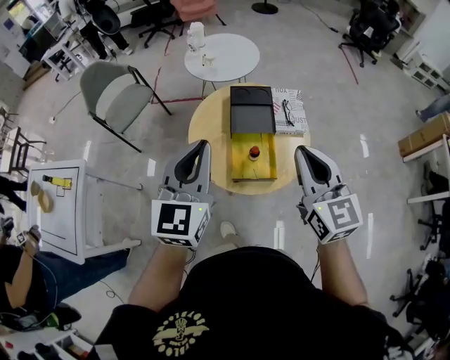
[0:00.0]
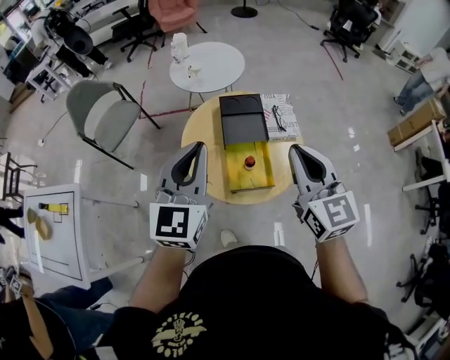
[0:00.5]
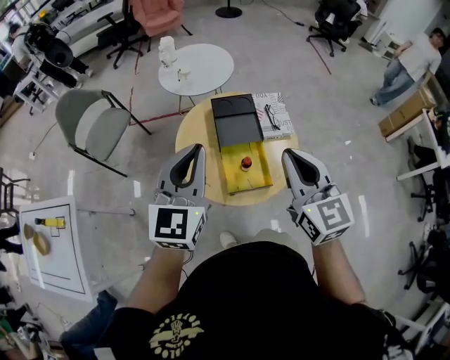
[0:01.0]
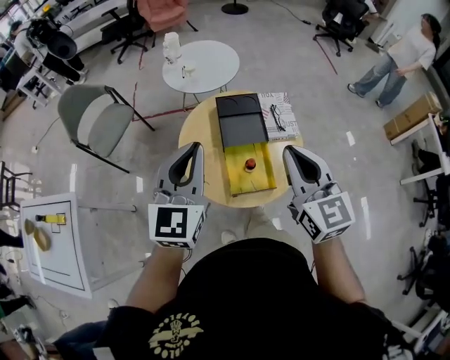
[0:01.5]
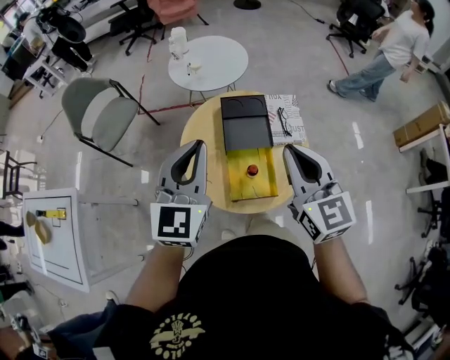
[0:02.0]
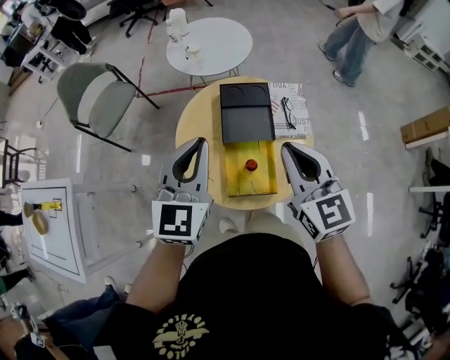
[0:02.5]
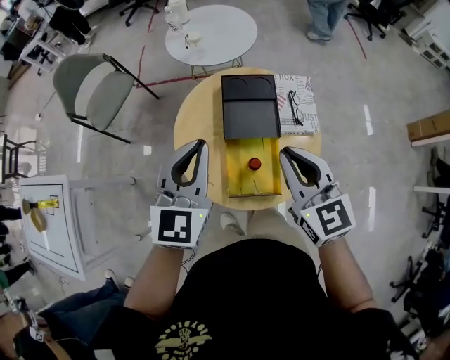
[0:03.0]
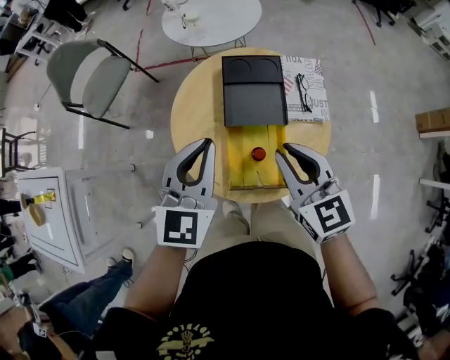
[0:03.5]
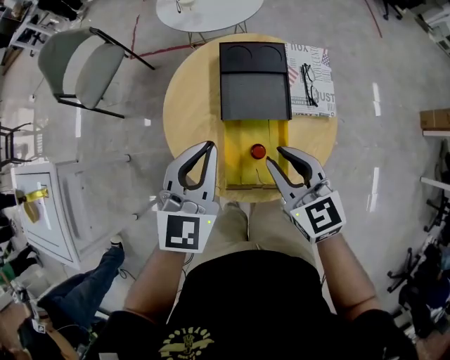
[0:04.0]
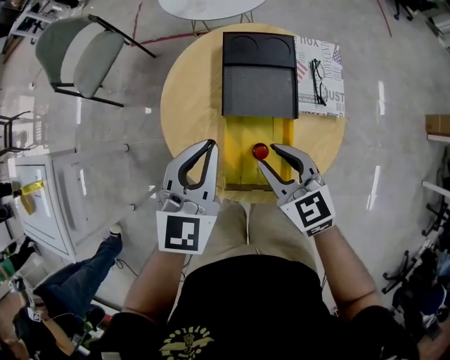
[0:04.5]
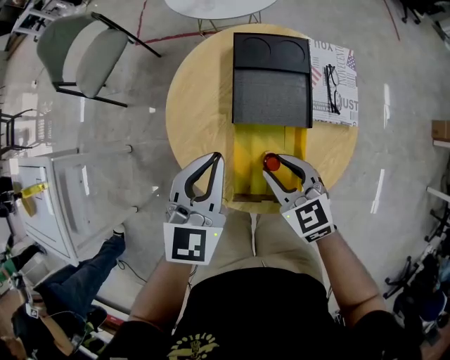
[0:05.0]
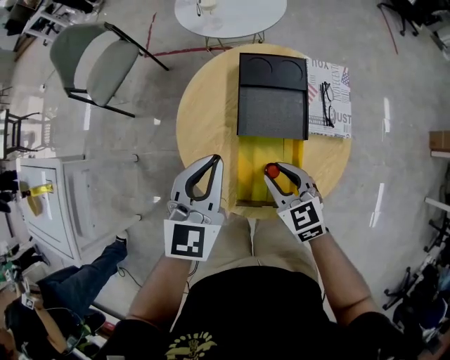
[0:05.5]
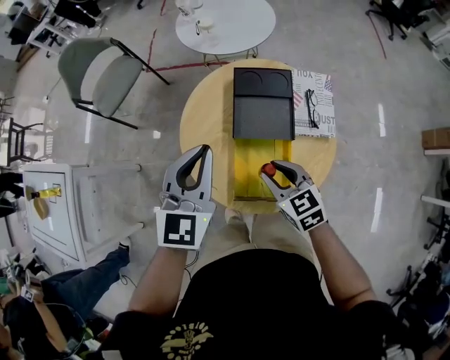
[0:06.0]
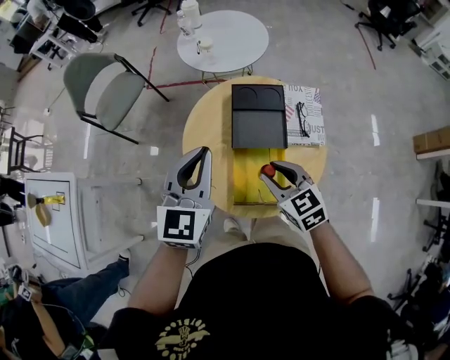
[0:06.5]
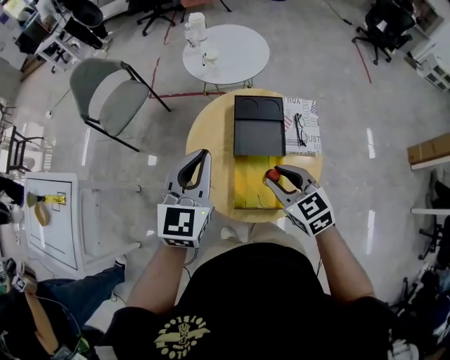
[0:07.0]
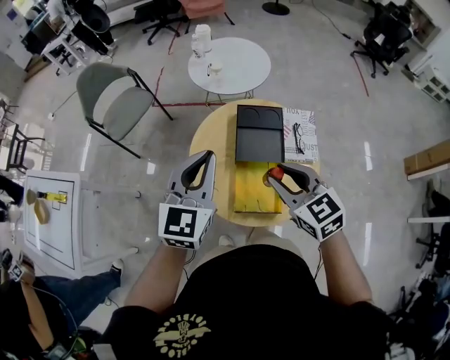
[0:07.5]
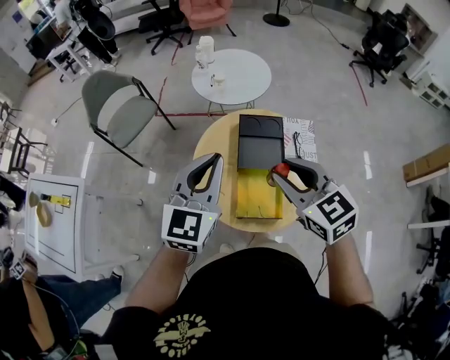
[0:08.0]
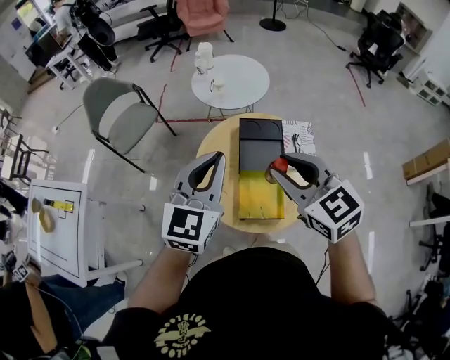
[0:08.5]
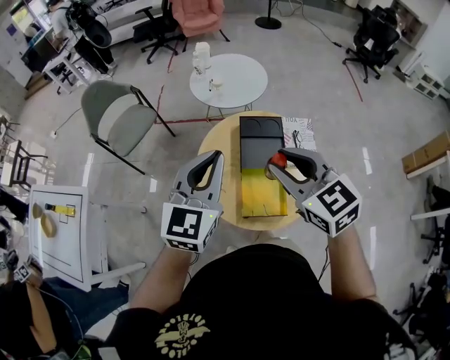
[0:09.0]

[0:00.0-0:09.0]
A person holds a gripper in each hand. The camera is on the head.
0:00.0 to 0:02.0: Both grippers move forward, some 10 cm.
0:02.0 to 0:04.5: The grippers both shift downward by roughly 25 cm. The right gripper turns by roughly 30 degrees, and opens its fingers.
0:04.5 to 0:07.0: Both grippers move upward, approximately 15 cm.
0:07.0 to 0:09.0: The left gripper heads upward, covering about 10 cm. Meanwhile the right gripper goes roughly 20 cm upward.

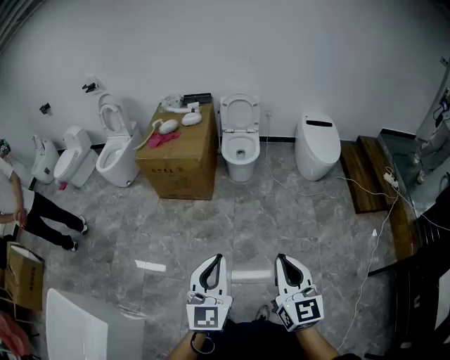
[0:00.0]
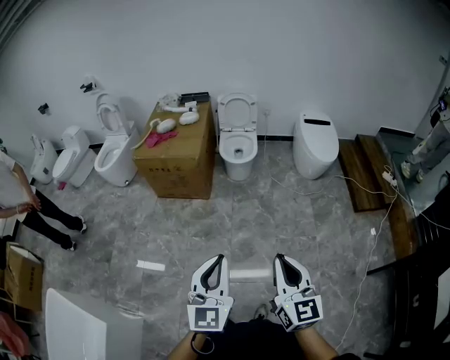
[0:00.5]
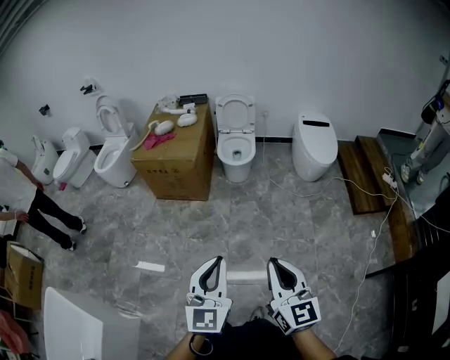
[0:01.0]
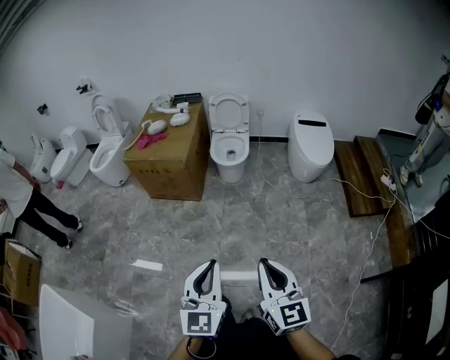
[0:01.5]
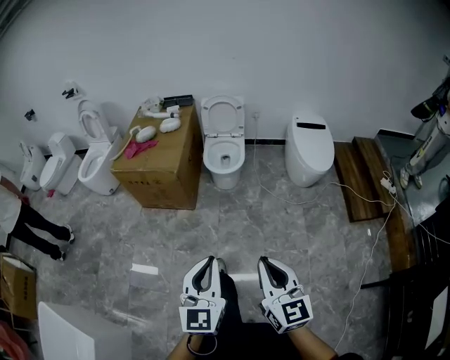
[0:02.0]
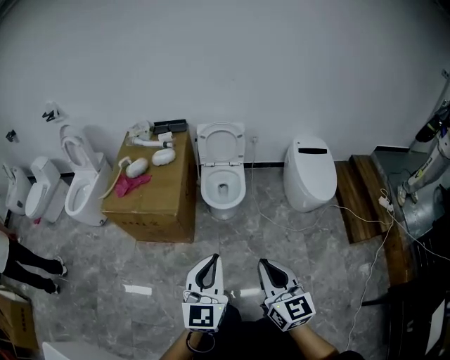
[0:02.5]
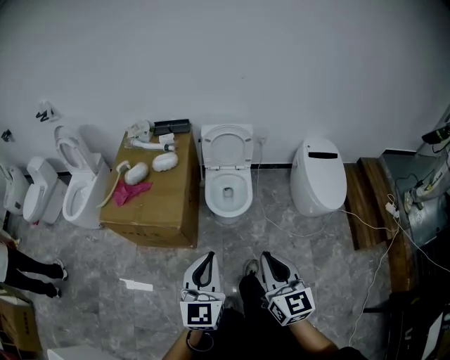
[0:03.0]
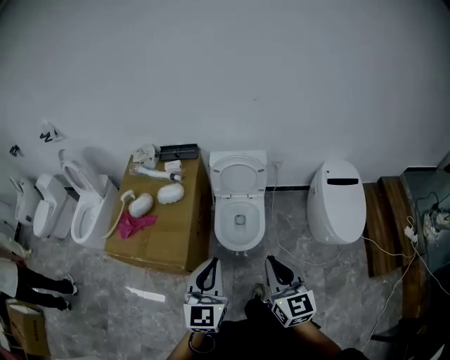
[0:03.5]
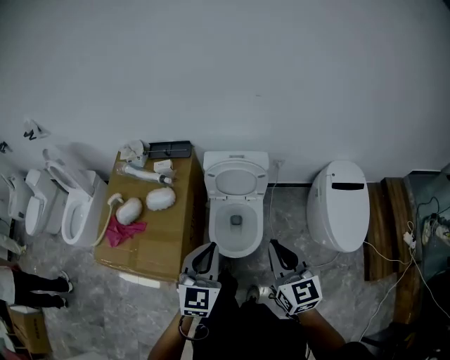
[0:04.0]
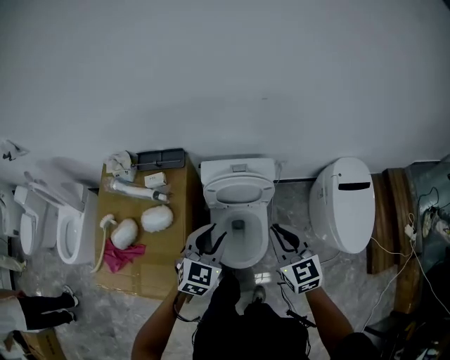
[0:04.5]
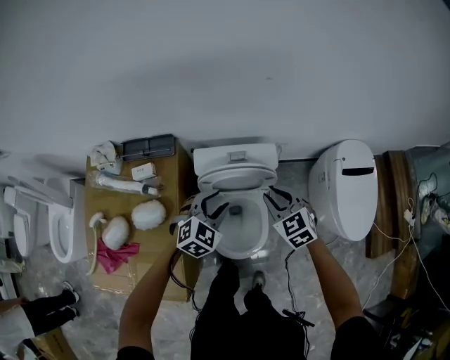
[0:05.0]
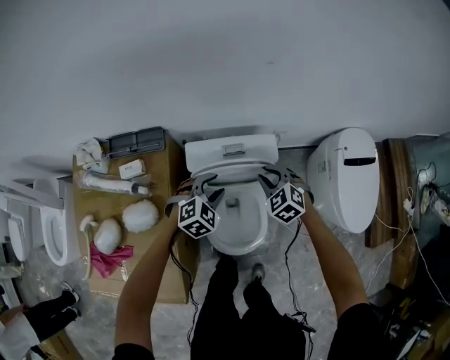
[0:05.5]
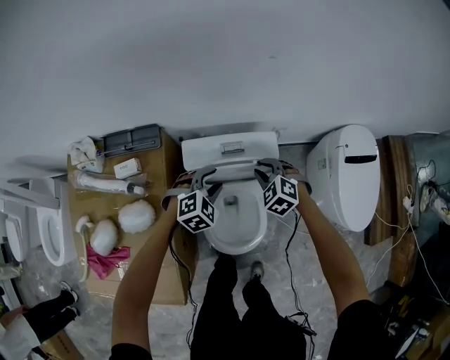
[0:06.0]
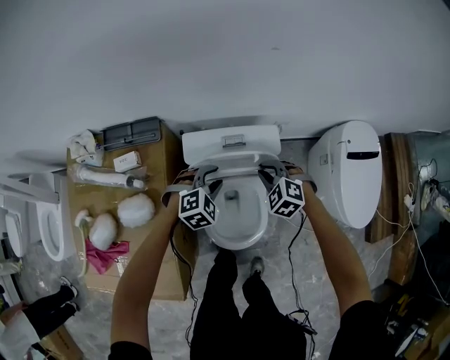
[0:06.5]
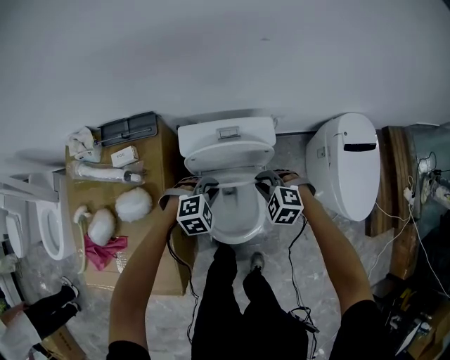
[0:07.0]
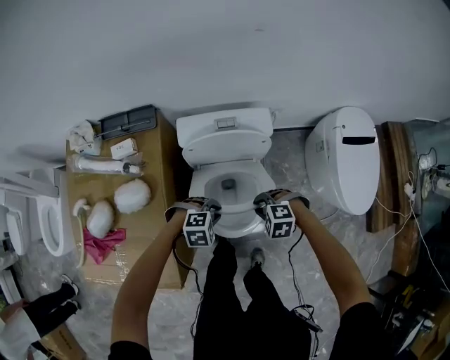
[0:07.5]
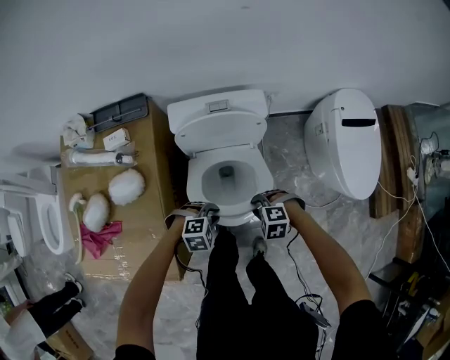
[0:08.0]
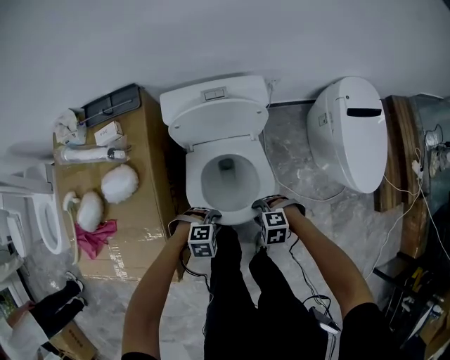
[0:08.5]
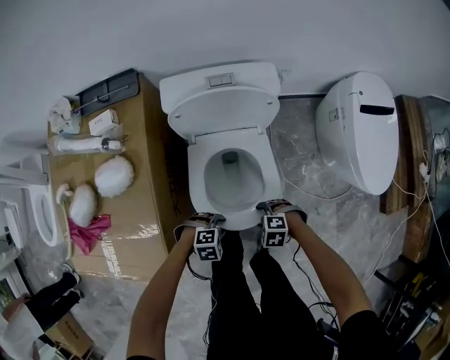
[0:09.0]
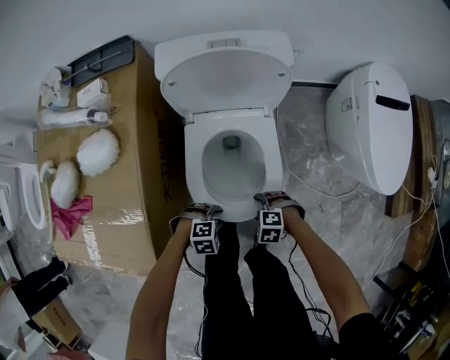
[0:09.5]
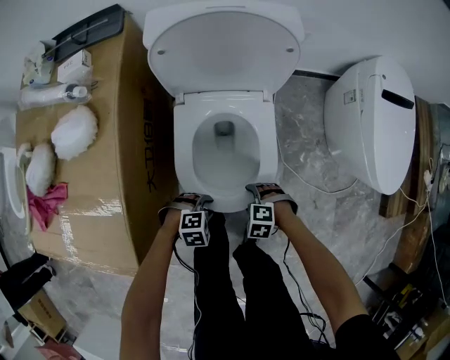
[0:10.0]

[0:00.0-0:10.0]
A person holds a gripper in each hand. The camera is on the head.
0:00.0 to 0:02.0: The two grippers go roughly 20 cm forward and to the right.
0:02.0 to 0:04.0: The pair of grippers is taken forward, approximately 80 cm.
0:04.0 to 0:06.0: The grippers both shift forward and downward by approximately 50 cm. The right gripper tilts its fingers roughly 50 degrees downward, while the left gripper angles its fingers downward, by roughly 40 degrees, and opens.
0:06.0 to 0:08.0: The left gripper shifts by approximately 30 cm, swivels approximately 30 degrees, and closes up; the right gripper ends up roughly 30 cm from where it was, and turns by about 30 degrees.
0:08.0 to 0:10.0: Both grippers travel together downward, about 25 cm. The right gripper opens.

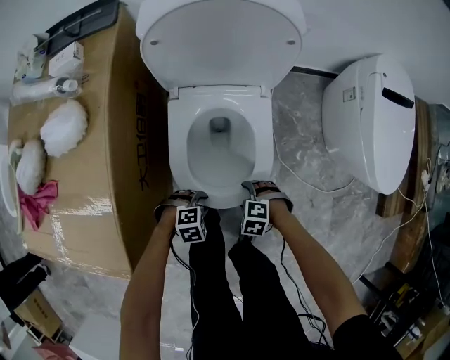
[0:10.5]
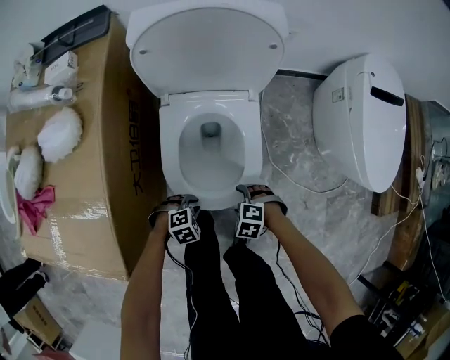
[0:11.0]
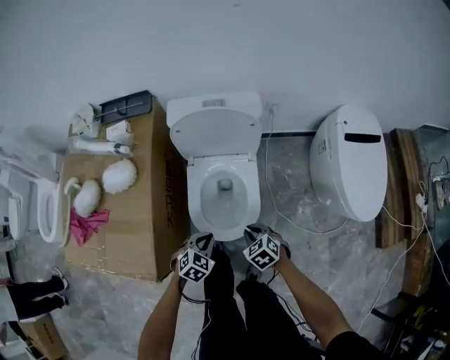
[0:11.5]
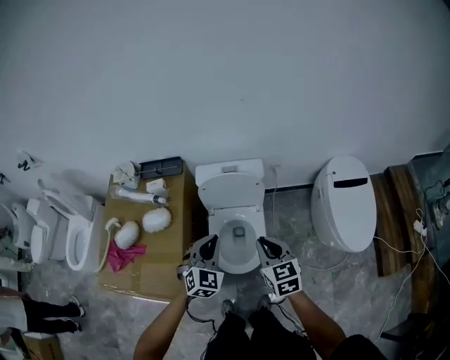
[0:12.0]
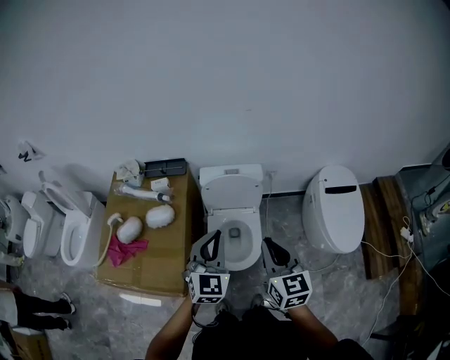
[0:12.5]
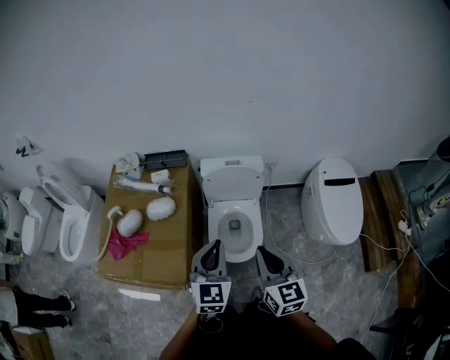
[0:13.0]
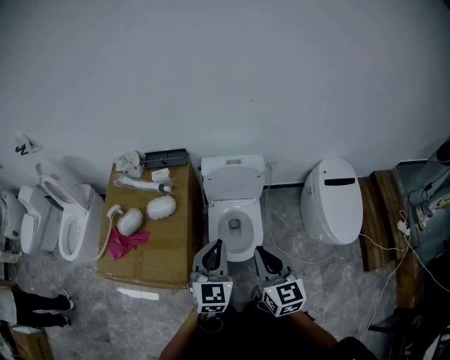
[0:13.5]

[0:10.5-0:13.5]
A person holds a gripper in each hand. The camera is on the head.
0:10.5 to 0:12.0: Both grippers move upward, roughly 60 cm. The right gripper tilts its fingers roughly 50 degrees upward, and closes its fingers; the left gripper tilts its fingers some 50 degrees upward, and closes.
0:12.0 to 0:13.5: The right gripper is displaced upward, backward and to the left by about 20 cm; the left gripper goes roughly 15 cm upward and backward, and rotates approximately 30 degrees.

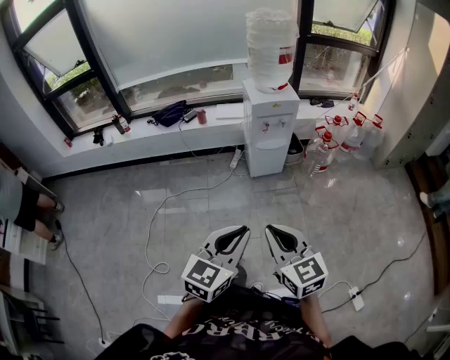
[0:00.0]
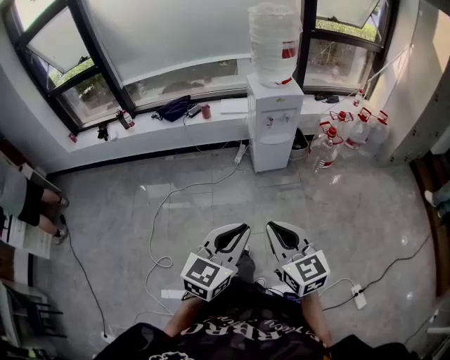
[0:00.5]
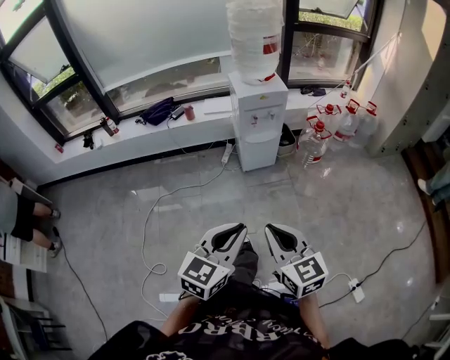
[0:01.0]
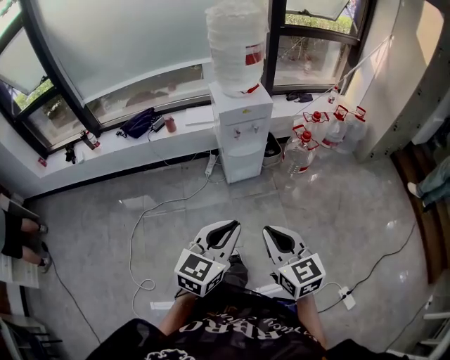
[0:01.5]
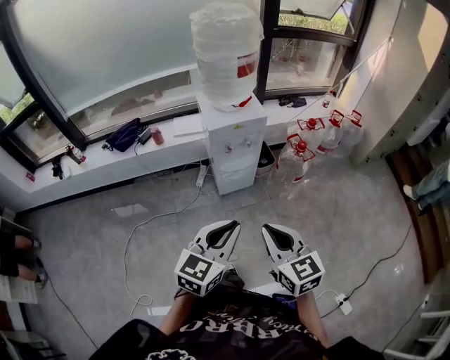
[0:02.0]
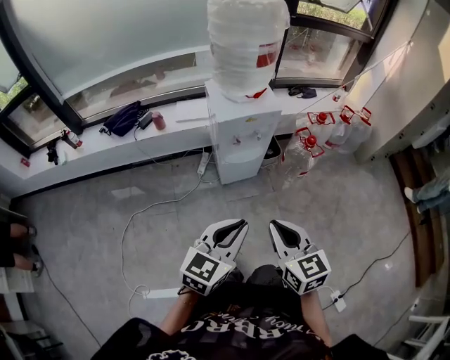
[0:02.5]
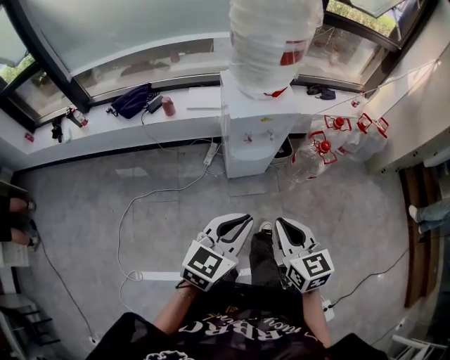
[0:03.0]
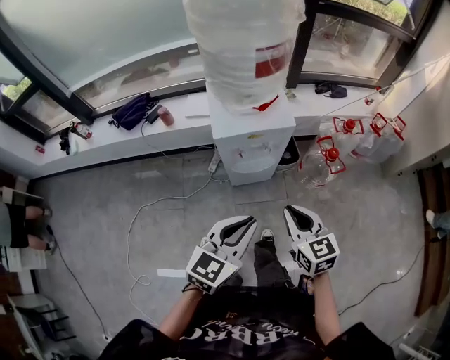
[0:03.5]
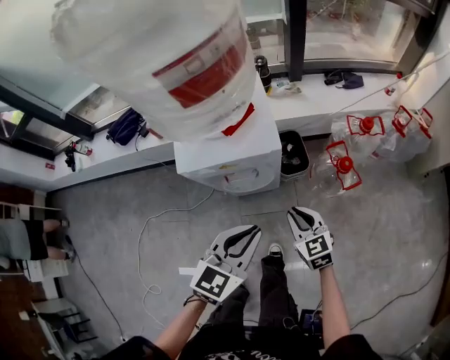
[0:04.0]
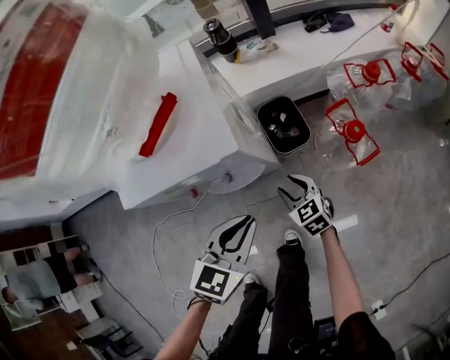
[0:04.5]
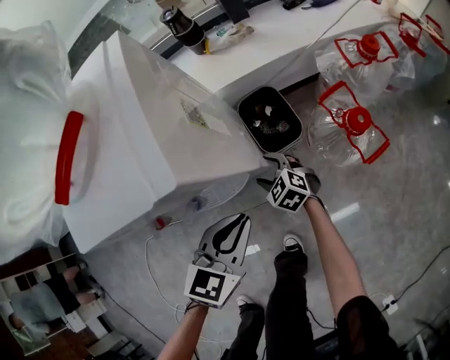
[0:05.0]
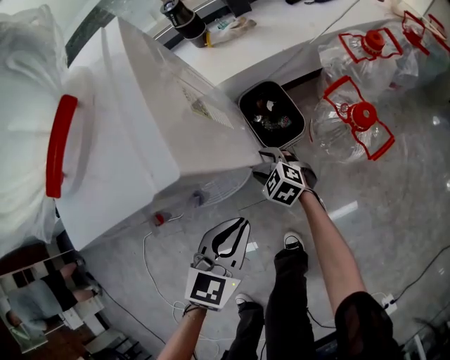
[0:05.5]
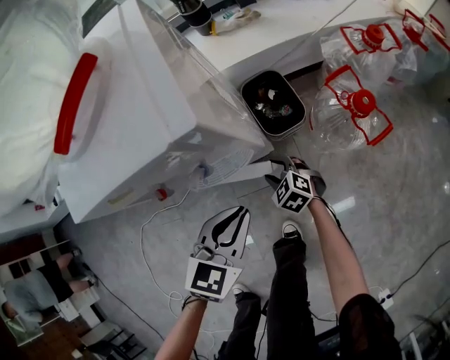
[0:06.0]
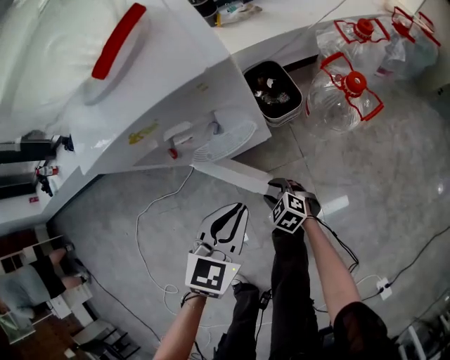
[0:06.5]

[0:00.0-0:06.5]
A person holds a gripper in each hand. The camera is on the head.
0:00.0 to 0:02.0: The grippers both shift forward by some 30 cm.
0:02.0 to 0:04.5: Both grippers are carried forward, approximately 50 cm. The right gripper is displaced downward by about 50 cm, turns by roughly 20 degrees, and opens its fingers. The left gripper goes about 35 cm downward, and turns by some 20 degrees.
0:04.5 to 0:06.5: The right gripper heads downward, backward and to the left, covering roughly 20 cm, turns by approximately 20 degrees, and opens and closes again. The left gripper shifts approximately 10 cm downward and backward.
